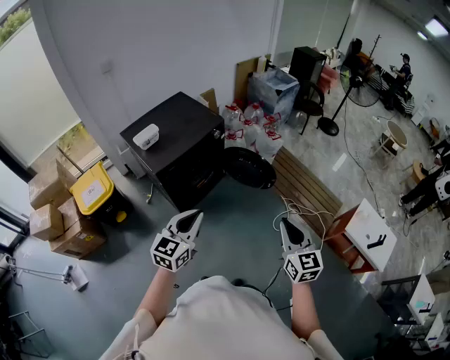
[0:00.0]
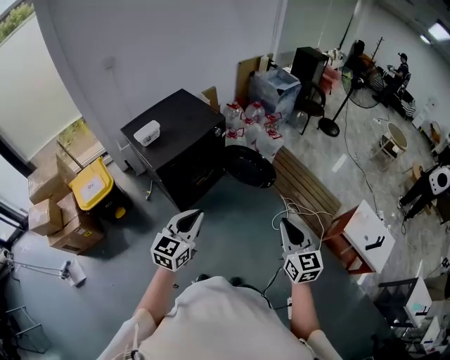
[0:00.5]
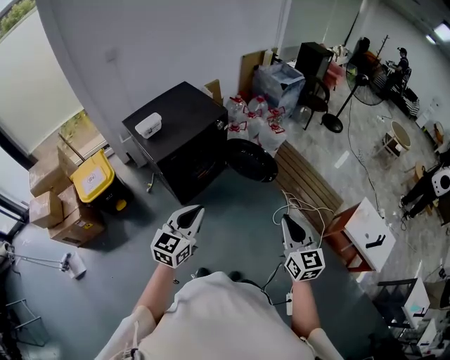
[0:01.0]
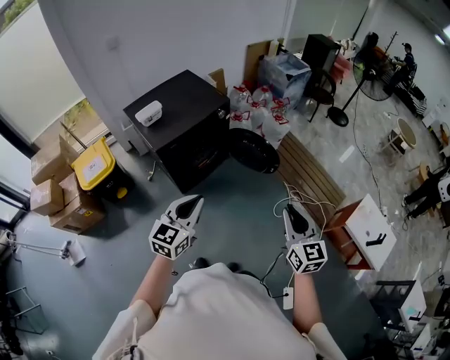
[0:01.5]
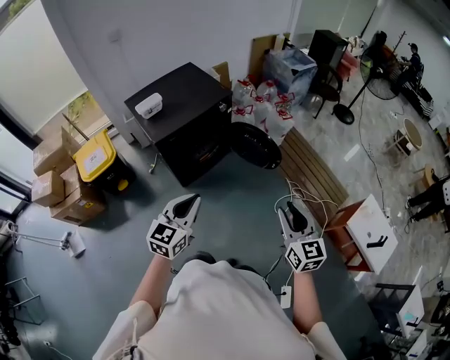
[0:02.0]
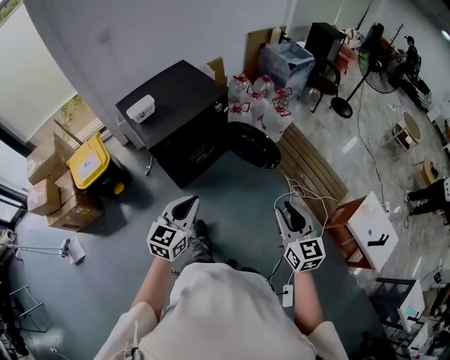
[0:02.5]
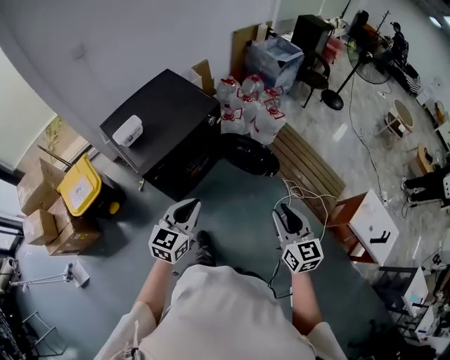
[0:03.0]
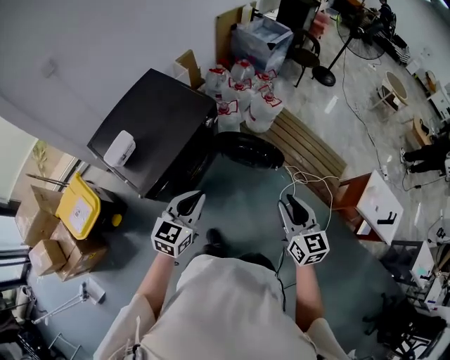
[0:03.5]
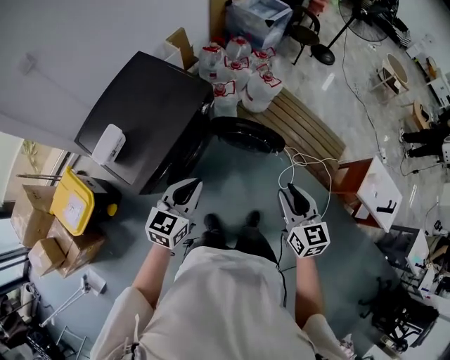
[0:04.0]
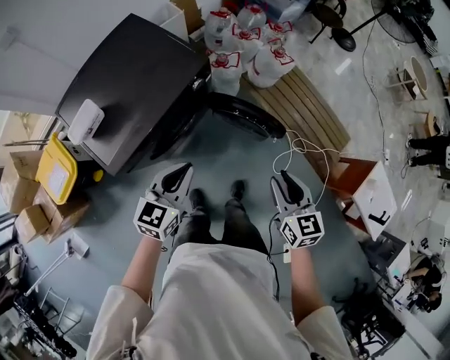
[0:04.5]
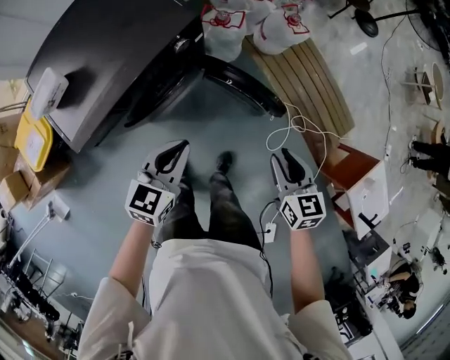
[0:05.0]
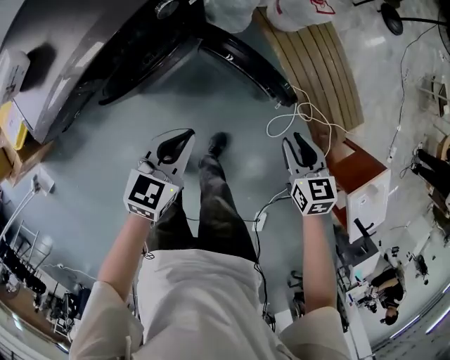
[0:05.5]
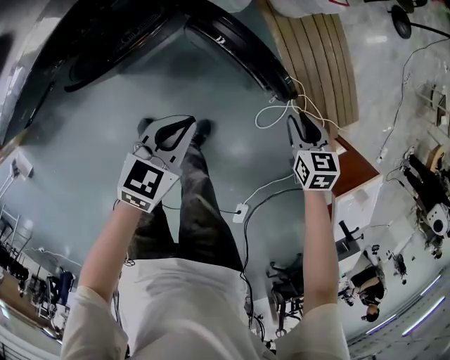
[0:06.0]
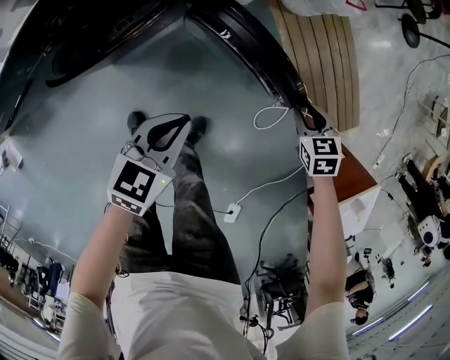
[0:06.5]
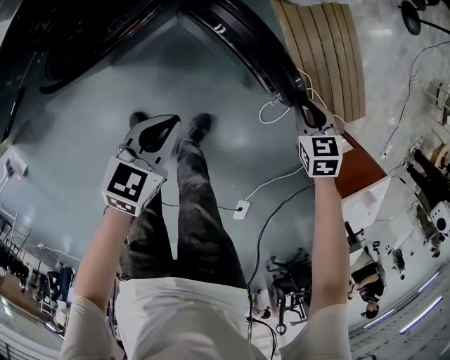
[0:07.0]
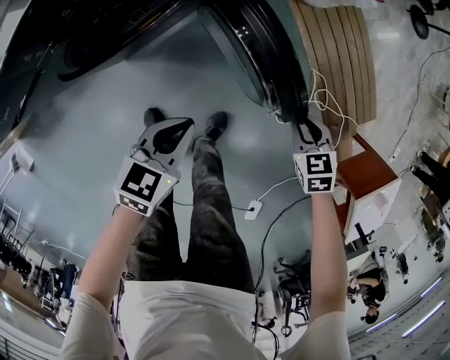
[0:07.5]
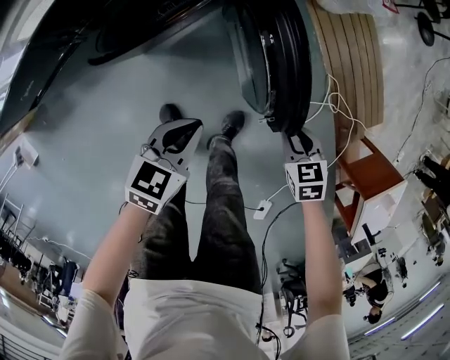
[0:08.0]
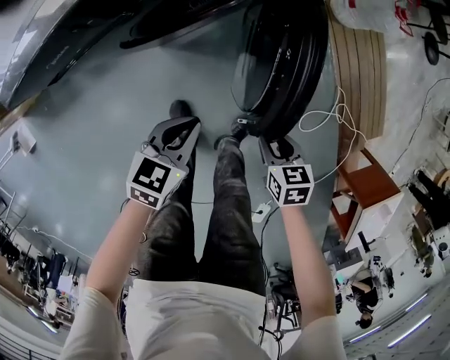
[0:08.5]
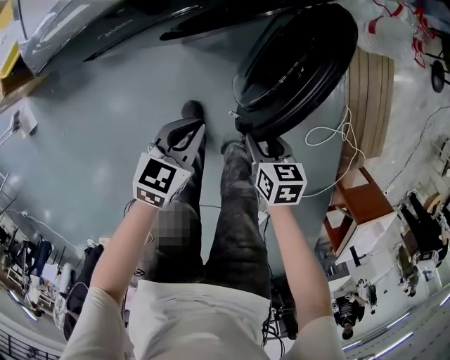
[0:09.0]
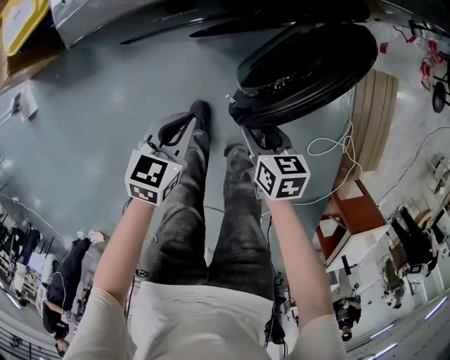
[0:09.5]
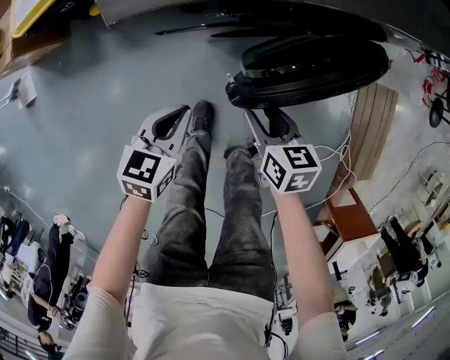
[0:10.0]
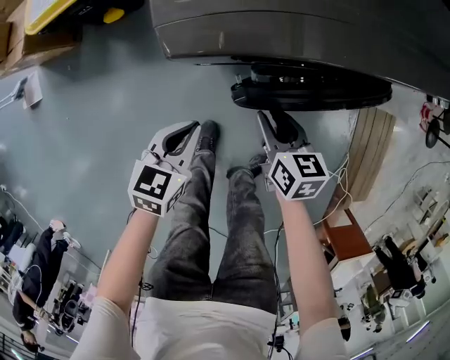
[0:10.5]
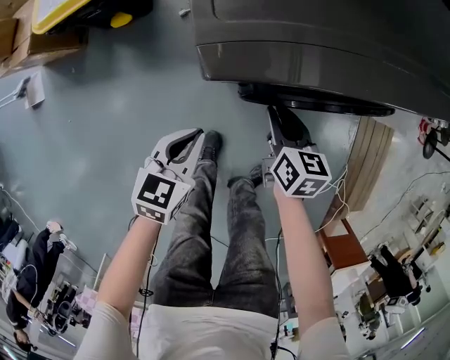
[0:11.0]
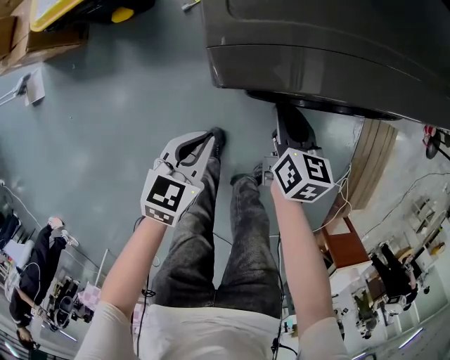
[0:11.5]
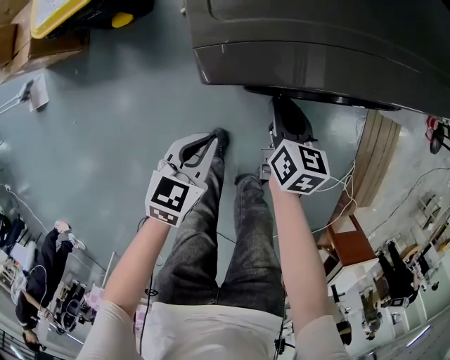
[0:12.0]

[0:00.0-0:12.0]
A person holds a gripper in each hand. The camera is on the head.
0:00.0 to 0:02.0: The right gripper opens its fingers.
0:02.0 to 0:04.0: The left gripper shifts about 35 cm forward, and rotates some 20 degrees. Meanwhile the right gripper shifts roughly 35 cm forward and to the left.
0:04.0 to 0:06.0: The right gripper is displaced downward, forward and to the right by approximately 60 cm, and angles its fingers downward, by about 30 degrees. Meanwhile the left gripper heads downward and to the right, covering about 40 cm, and changes its angle by about 20 degrees.
0:06.0 to 0:08.0: The grippers both shift to the left, backward and downward by roughly 20 cm.
0:08.0 to 0:10.0: The right gripper shifts by some 35 cm, swivels approximately 20 degrees, and opens up; the left gripper changes place by approximately 30 cm, and swivels some 30 degrees.
0:10.0 to 0:12.0: The right gripper heads forward and to the left, covering about 15 cm, and closes its fingers.

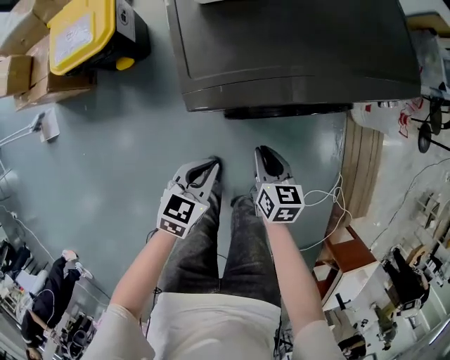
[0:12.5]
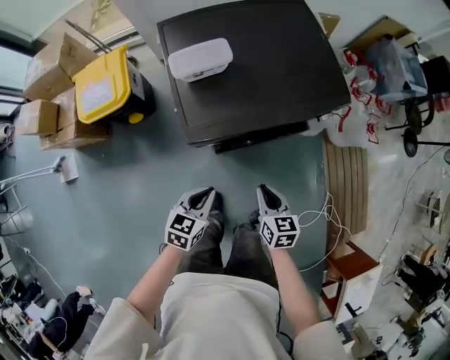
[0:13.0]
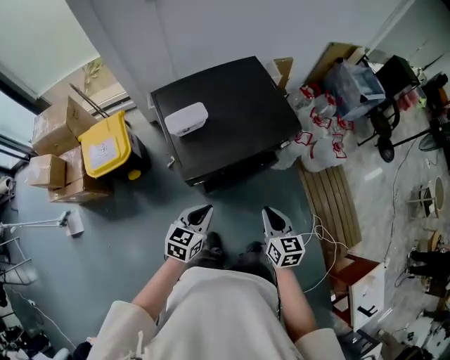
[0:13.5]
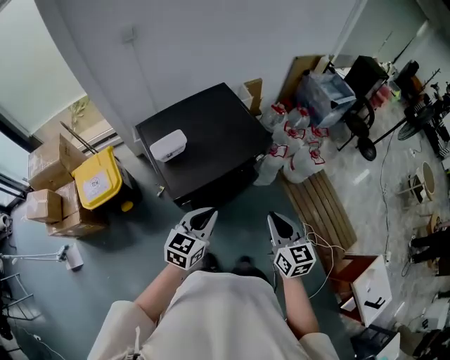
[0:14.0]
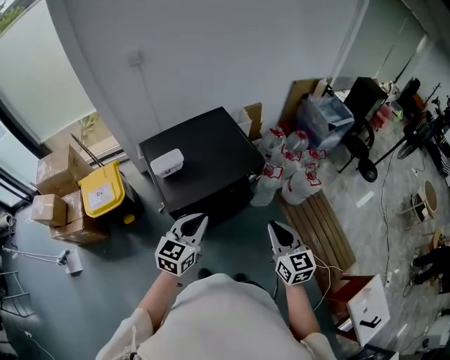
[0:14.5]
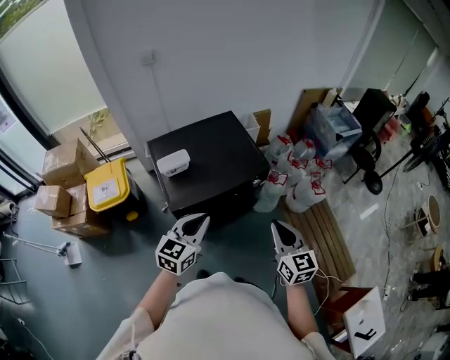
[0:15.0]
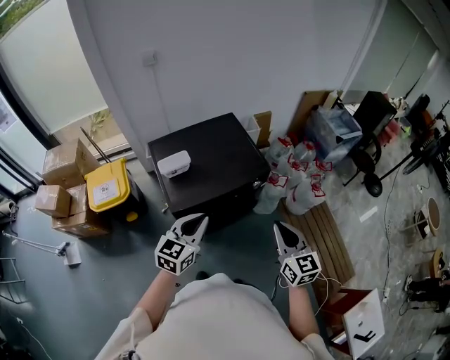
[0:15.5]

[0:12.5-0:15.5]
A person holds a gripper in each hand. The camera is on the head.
0:12.5 to 0:14.0: The grippers both shift upward by some 40 cm. The right gripper turns by about 30 degrees; the left gripper turns by about 30 degrees.
0:14.0 to 0:15.5: The right gripper heads upward and to the right, covering roughly 10 cm. Meanwhile the left gripper travels upward by roughly 10 cm.

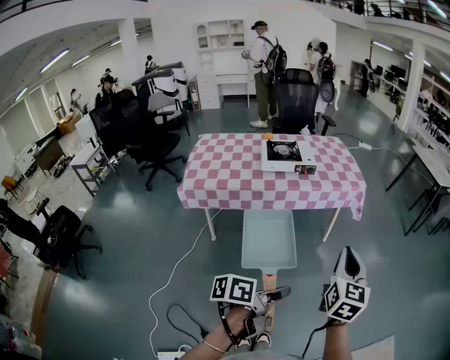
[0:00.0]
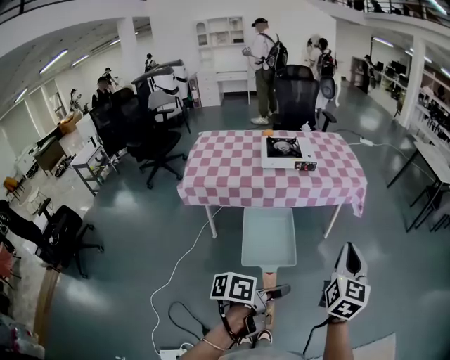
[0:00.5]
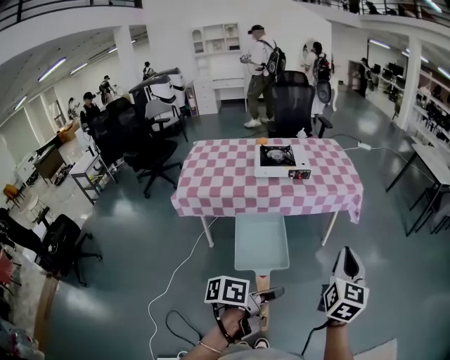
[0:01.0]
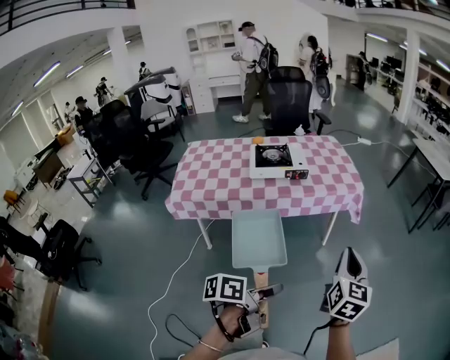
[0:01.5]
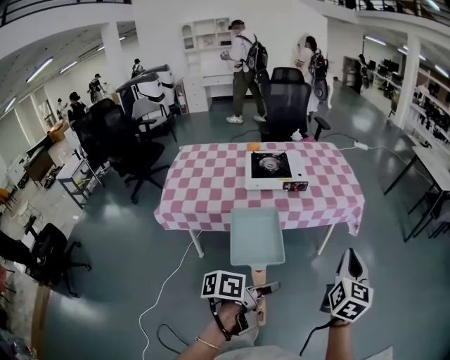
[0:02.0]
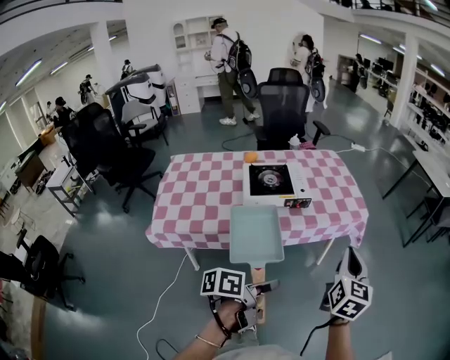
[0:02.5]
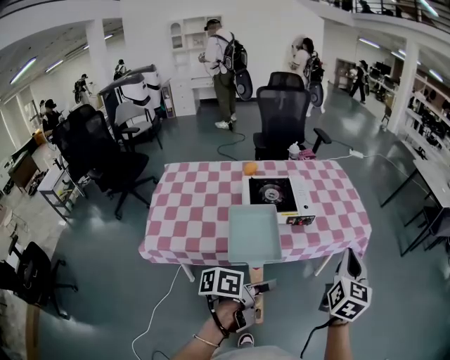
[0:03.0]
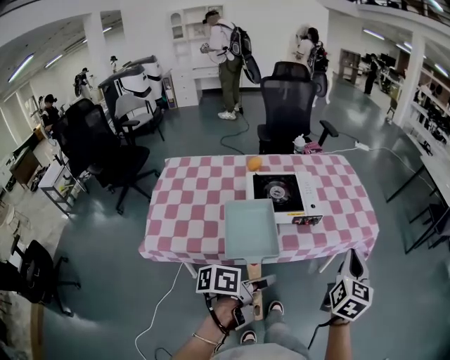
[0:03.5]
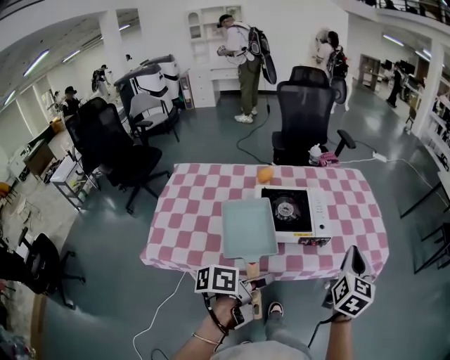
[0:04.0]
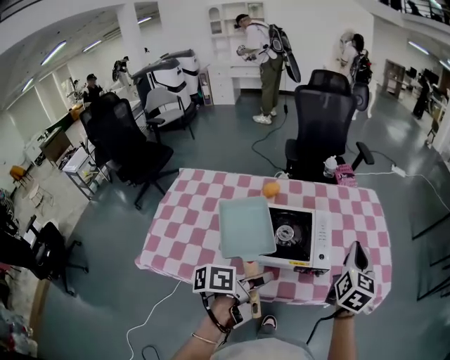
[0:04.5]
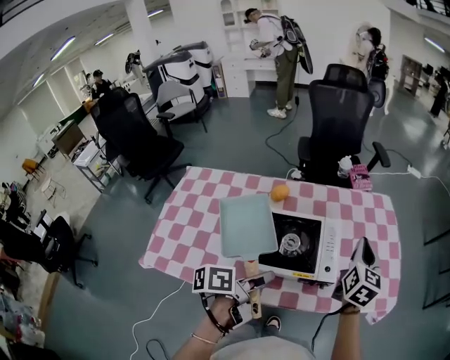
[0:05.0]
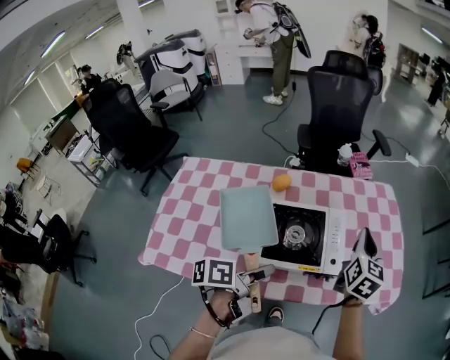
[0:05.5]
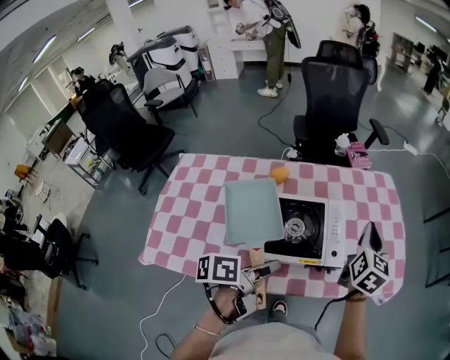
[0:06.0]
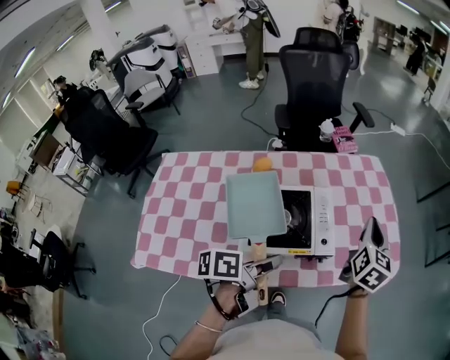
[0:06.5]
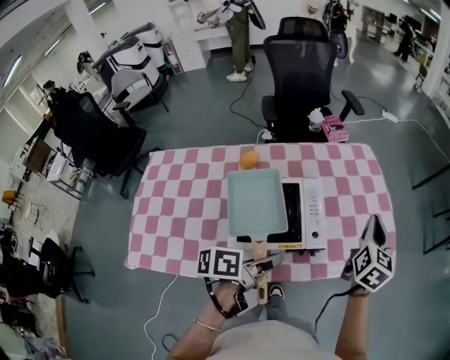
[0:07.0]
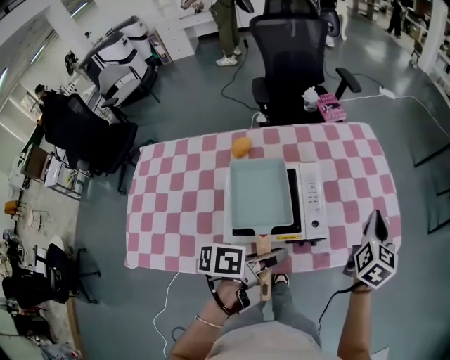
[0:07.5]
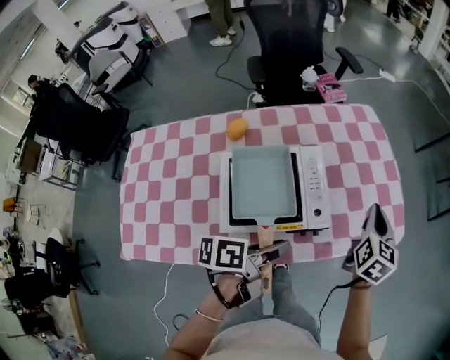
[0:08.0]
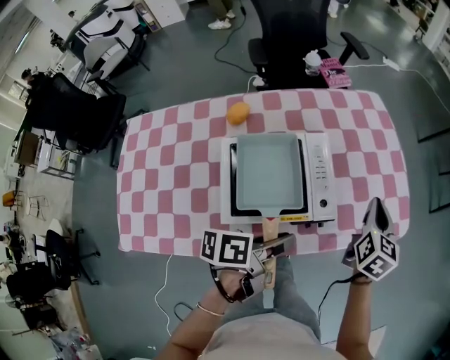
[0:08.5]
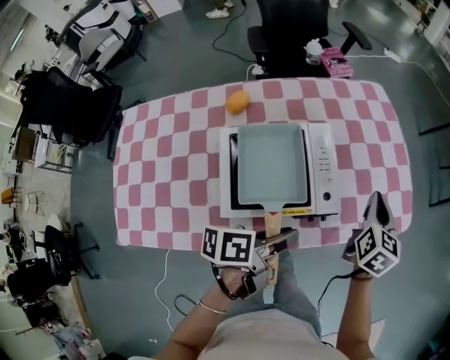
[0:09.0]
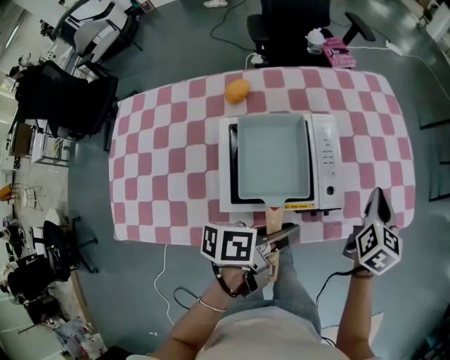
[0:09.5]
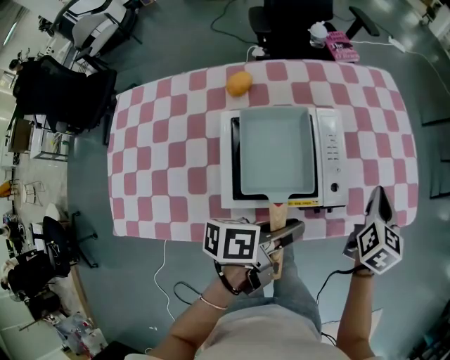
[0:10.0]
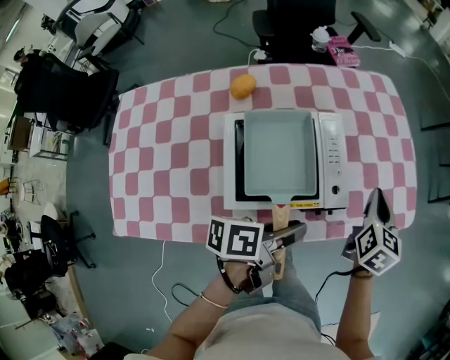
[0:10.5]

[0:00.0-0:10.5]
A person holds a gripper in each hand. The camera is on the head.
0:00.0 to 0:02.0: The right gripper shifts about 20 cm forward, while the left gripper is displaced forward and to the left by approximately 20 cm.
0:02.0 to 0:04.0: The left gripper shifts roughly 35 cm to the left and forward. The right gripper travels forward and to the left by about 35 cm.
0:04.0 to 0:06.5: Both grippers travel together forward, approximately 20 cm.
0:06.5 to 0:08.5: The left gripper moves downward, about 5 cm; the right gripper travels downward by some 10 cm.
0:08.5 to 0:10.5: The grippers stay close to where they were, moving slightly.

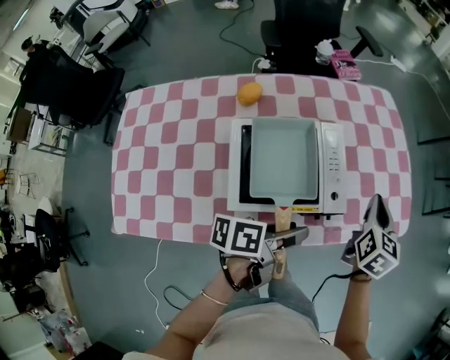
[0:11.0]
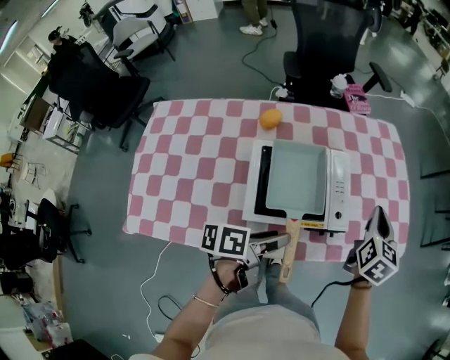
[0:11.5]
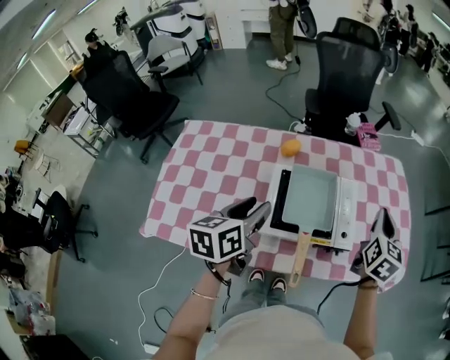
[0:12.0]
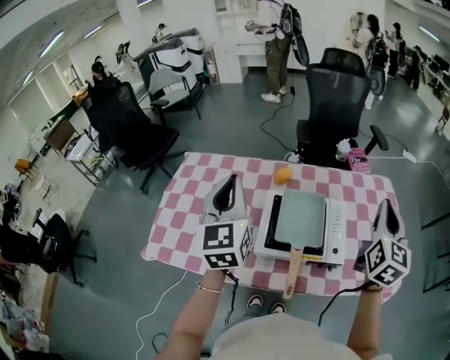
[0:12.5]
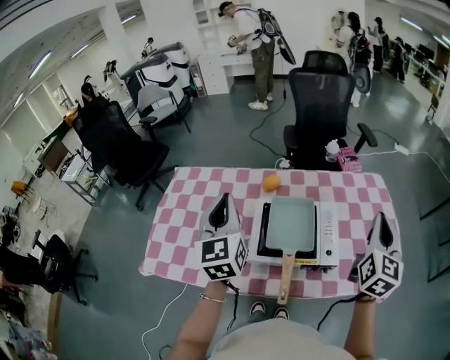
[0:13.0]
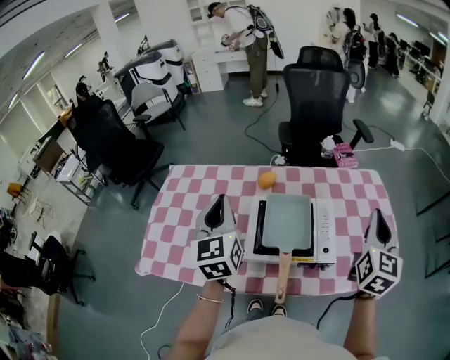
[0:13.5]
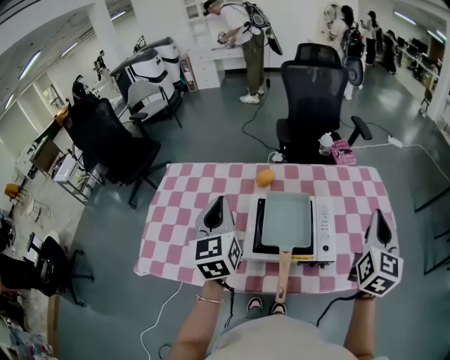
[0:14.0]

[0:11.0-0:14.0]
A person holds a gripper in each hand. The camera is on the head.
0:11.0 to 0:12.5: The left gripper moves approximately 35 cm, changes its angle by roughly 100 degrees, and closes its fingers. The right gripper moves upward, roughly 20 cm, and swivels roughly 30 degrees.
0:12.5 to 0:14.0: The left gripper shifts approximately 5 cm downward.
